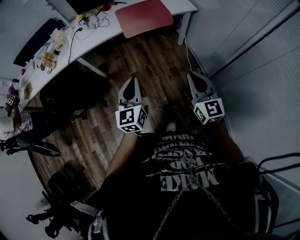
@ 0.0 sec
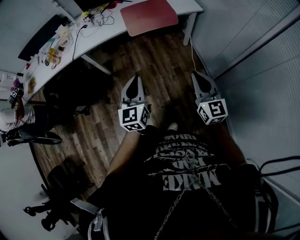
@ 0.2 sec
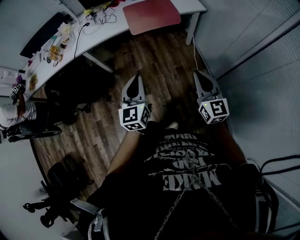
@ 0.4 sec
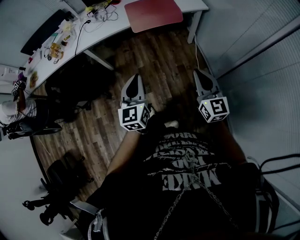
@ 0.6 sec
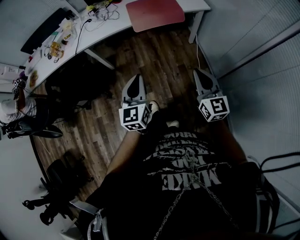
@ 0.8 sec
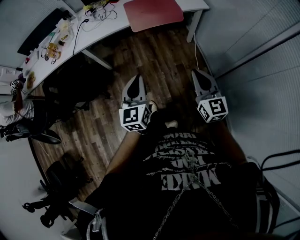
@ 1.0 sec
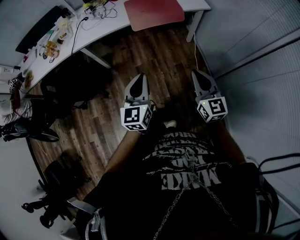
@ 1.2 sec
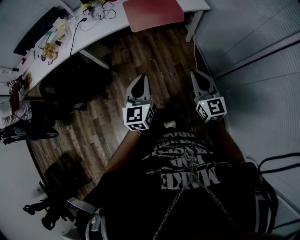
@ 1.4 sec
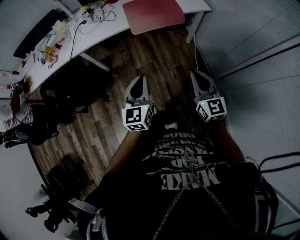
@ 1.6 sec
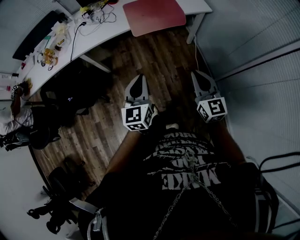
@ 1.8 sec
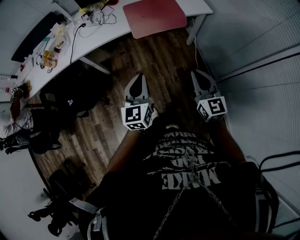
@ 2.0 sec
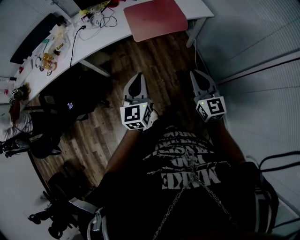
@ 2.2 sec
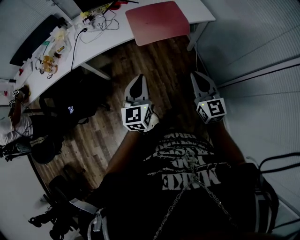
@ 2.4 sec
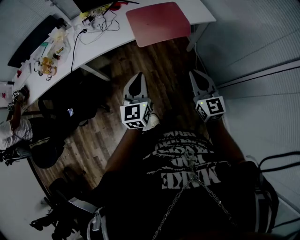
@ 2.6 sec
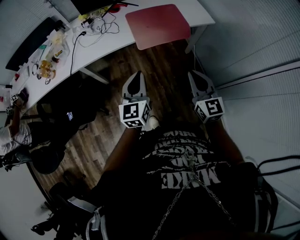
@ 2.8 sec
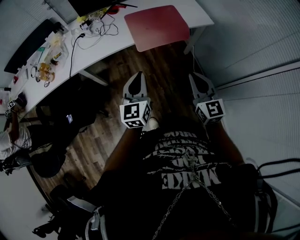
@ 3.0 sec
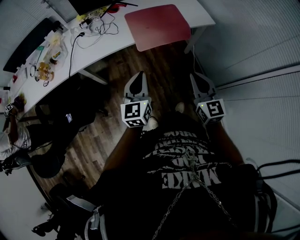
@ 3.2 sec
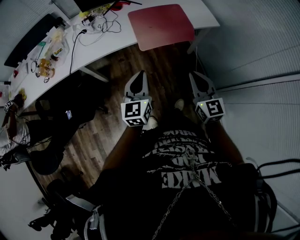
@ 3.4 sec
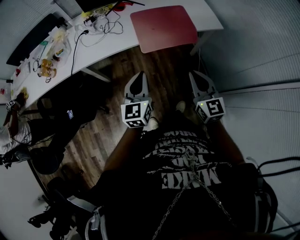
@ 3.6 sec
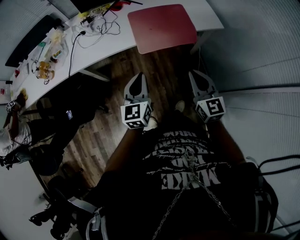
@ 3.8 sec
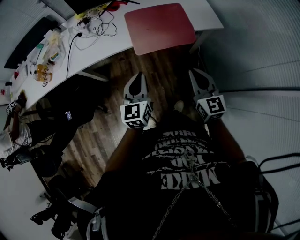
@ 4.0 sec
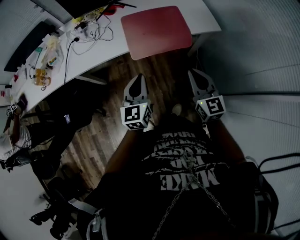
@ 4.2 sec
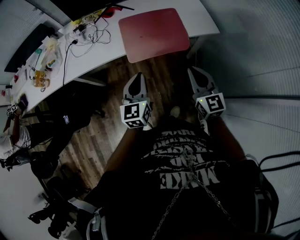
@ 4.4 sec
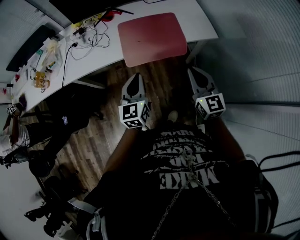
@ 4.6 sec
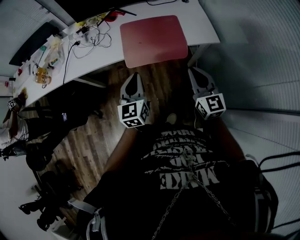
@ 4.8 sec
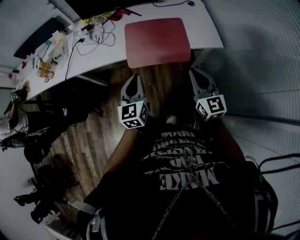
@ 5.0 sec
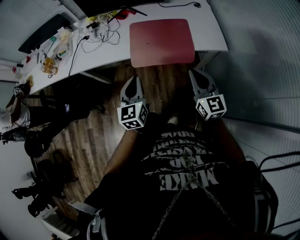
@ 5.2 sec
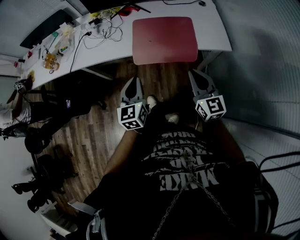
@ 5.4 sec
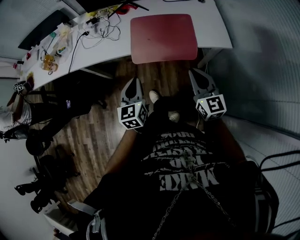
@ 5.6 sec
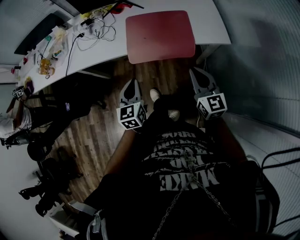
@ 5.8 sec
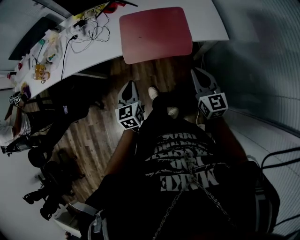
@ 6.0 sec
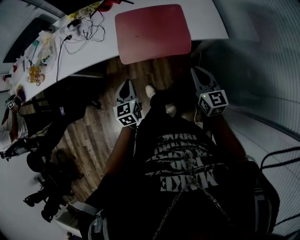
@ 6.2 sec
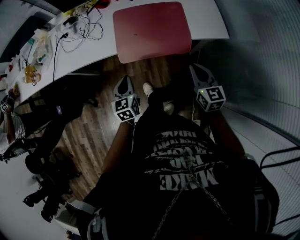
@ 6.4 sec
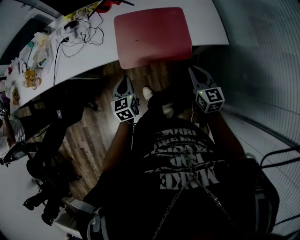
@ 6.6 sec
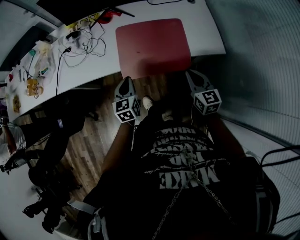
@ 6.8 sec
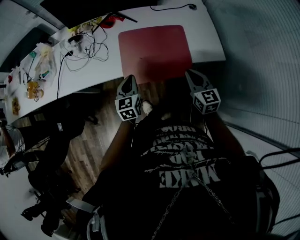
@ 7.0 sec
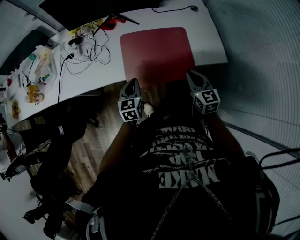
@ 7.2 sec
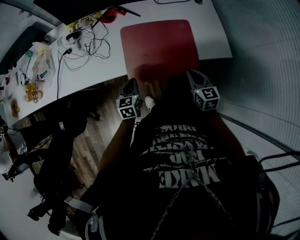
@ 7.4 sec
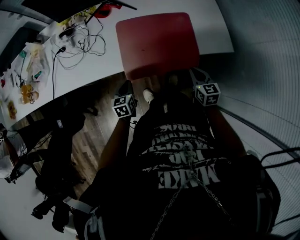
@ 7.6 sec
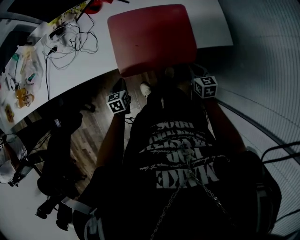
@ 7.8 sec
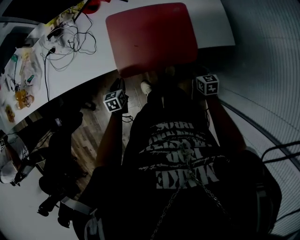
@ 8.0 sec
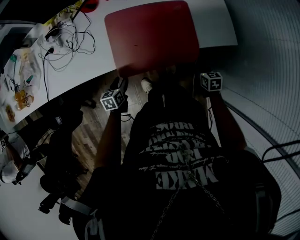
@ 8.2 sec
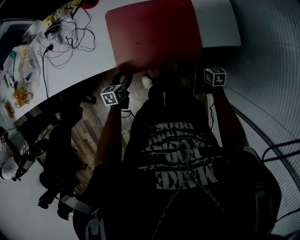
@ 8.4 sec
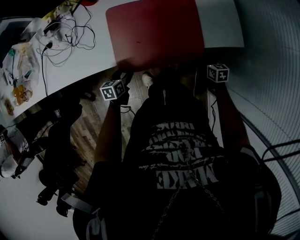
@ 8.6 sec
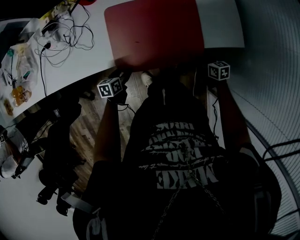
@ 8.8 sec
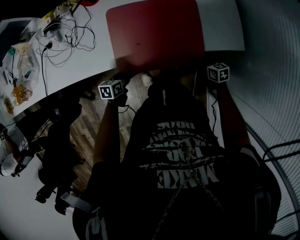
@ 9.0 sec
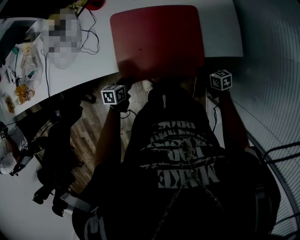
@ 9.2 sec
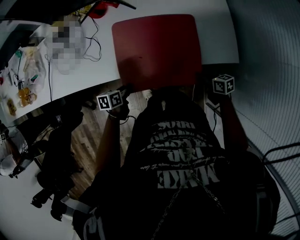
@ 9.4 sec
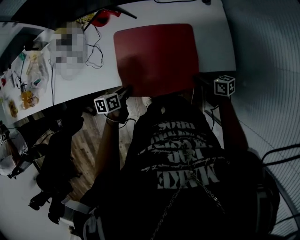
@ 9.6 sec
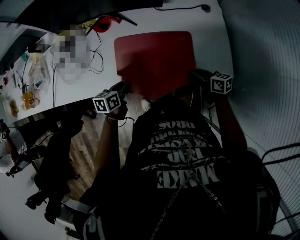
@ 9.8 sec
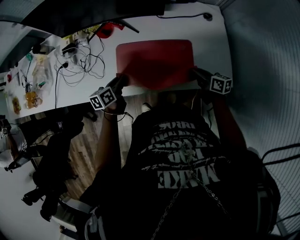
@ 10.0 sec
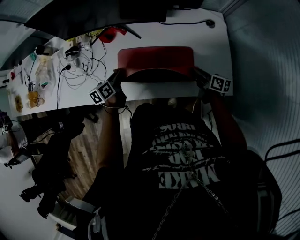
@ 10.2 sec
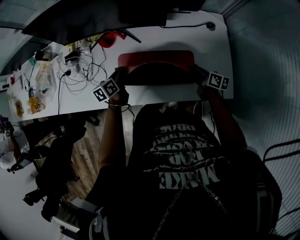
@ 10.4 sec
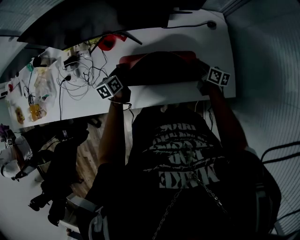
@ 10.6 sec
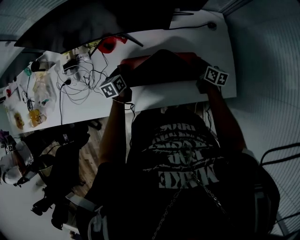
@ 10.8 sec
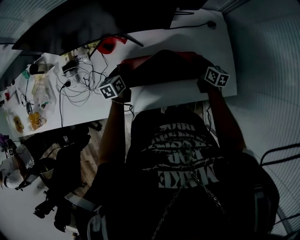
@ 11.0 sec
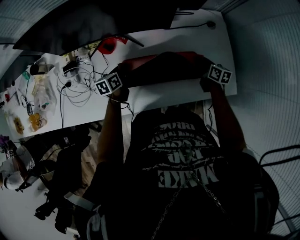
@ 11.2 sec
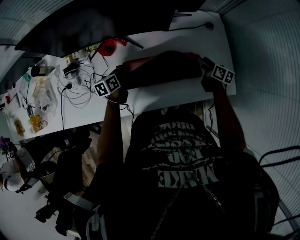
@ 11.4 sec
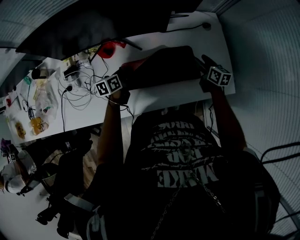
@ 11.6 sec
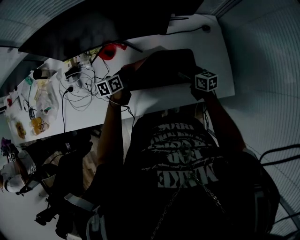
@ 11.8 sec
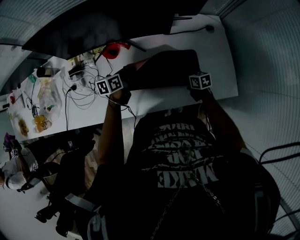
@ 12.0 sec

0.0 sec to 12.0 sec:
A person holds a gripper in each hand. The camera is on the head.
0.0 sec to 1.6 sec: Both grippers move forward, approximately 5 cm.
1.6 sec to 3.0 sec: Both grippers travel together forward and to the left, roughly 20 cm.
3.0 sec to 4.4 sec: Both grippers travel together forward and to the right, some 20 cm.
4.4 sec to 6.0 sec: The left gripper heads downward, covering about 10 cm; the right gripper moves to the right, forward and downward, roughly 15 cm.
6.0 sec to 7.6 sec: The two grippers go roughly 20 cm forward and downward. The left gripper swivels approximately 20 degrees. The right gripper turns by roughly 20 degrees.
7.6 sec to 9.0 sec: The left gripper travels downward by roughly 10 cm, changes its angle by about 30 degrees, and opens its fingers. Meanwhile the right gripper is displaced downward and to the right by approximately 20 cm, swivels roughly 30 degrees, and opens up.
9.0 sec to 10.4 sec: The two grippers go some 30 cm forward and upward. The right gripper swivels about 30 degrees, and closes its fingers; the left gripper changes its angle by approximately 30 degrees.
10.4 sec to 12.0 sec: The left gripper moves forward, approximately 5 cm, and rotates some 20 degrees. The right gripper shifts approximately 10 cm to the left and downward, rotates approximately 30 degrees, and opens its fingers.

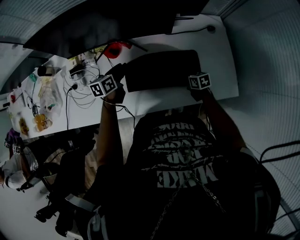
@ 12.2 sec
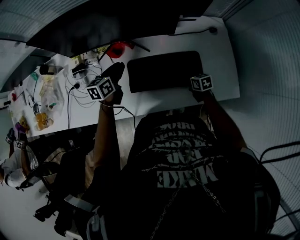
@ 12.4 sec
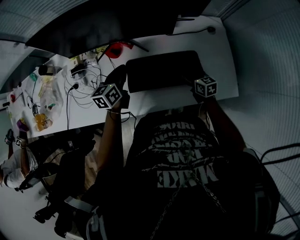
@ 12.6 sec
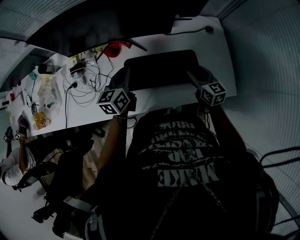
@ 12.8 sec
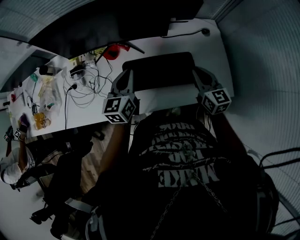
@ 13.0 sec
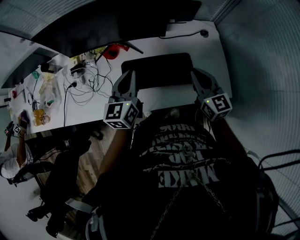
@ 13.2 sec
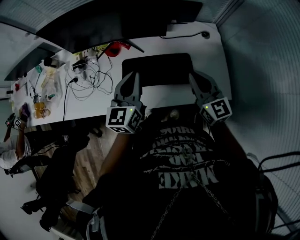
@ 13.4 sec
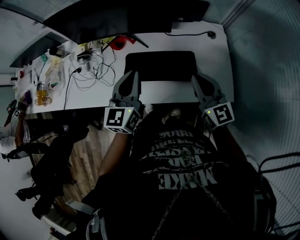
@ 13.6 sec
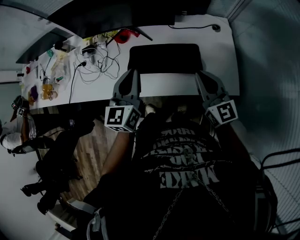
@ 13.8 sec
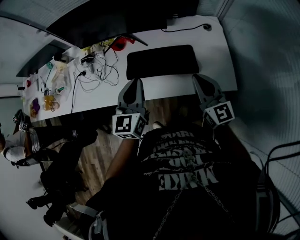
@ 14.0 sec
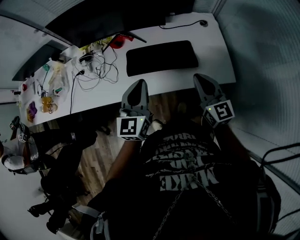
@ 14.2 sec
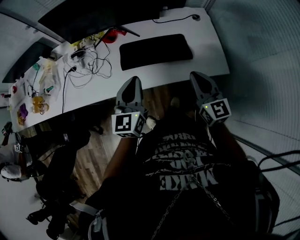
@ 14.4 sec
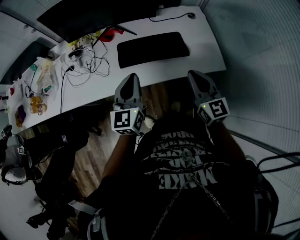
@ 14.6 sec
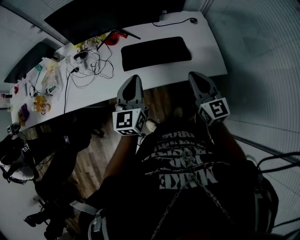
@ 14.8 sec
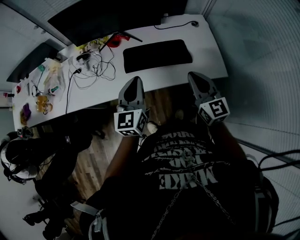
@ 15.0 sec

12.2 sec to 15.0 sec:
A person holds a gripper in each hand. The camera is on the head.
12.2 sec to 13.6 sec: The right gripper shifts about 35 cm upward, angles its fingers upward, by roughly 40 degrees, and closes its fingers. Meanwhile the left gripper goes approximately 30 cm upward, backward and to the right, changes its angle by about 40 degrees, and closes up.
13.6 sec to 15.0 sec: Both grippers move backward, roughly 15 cm.

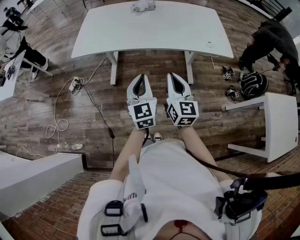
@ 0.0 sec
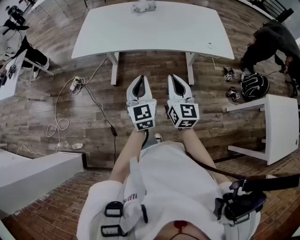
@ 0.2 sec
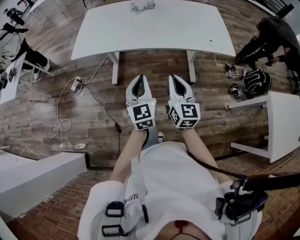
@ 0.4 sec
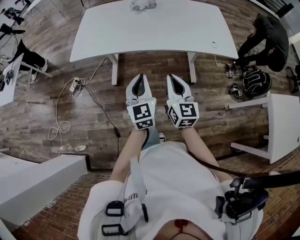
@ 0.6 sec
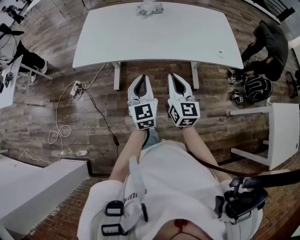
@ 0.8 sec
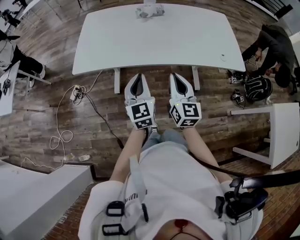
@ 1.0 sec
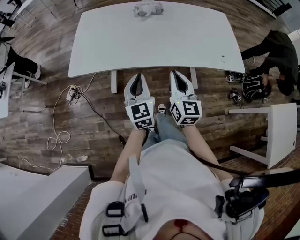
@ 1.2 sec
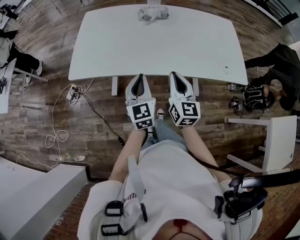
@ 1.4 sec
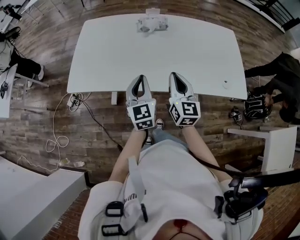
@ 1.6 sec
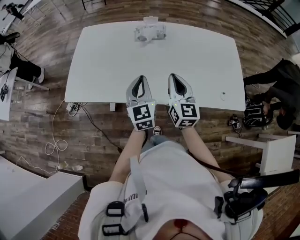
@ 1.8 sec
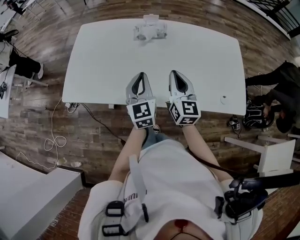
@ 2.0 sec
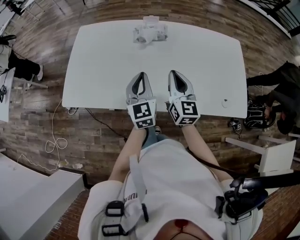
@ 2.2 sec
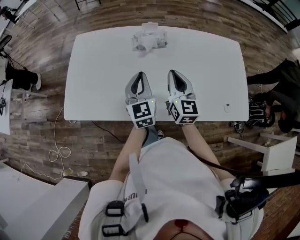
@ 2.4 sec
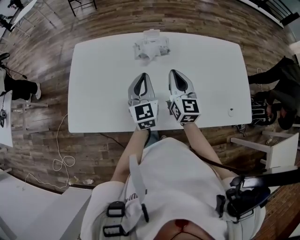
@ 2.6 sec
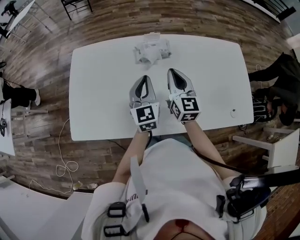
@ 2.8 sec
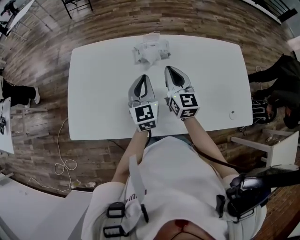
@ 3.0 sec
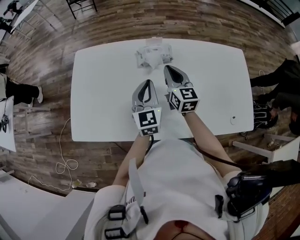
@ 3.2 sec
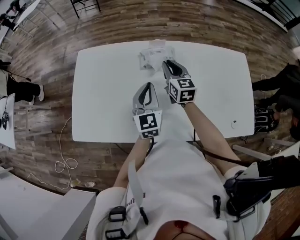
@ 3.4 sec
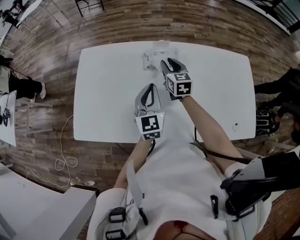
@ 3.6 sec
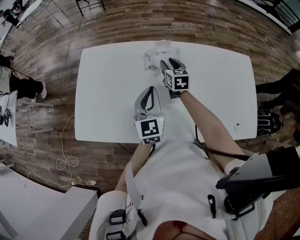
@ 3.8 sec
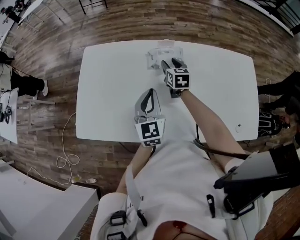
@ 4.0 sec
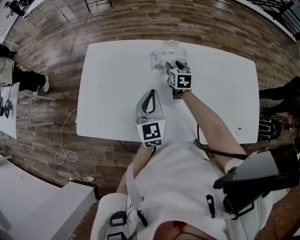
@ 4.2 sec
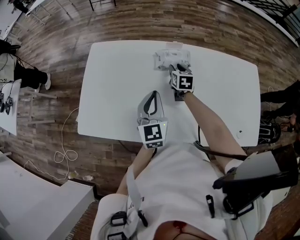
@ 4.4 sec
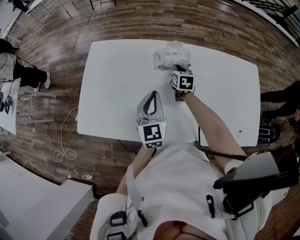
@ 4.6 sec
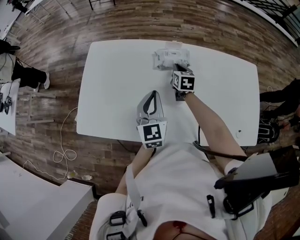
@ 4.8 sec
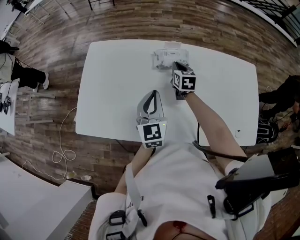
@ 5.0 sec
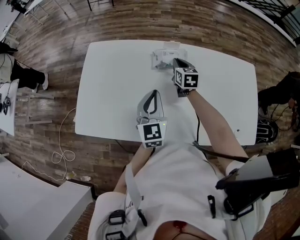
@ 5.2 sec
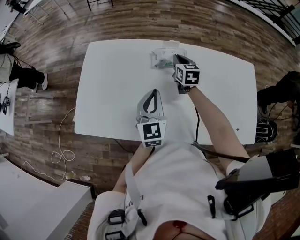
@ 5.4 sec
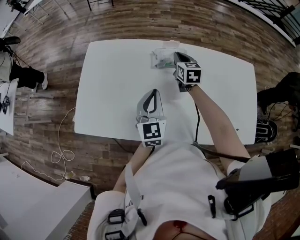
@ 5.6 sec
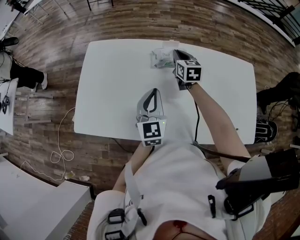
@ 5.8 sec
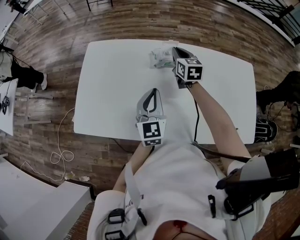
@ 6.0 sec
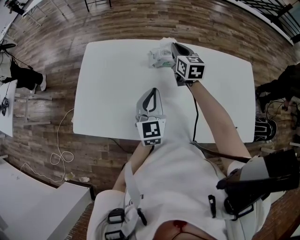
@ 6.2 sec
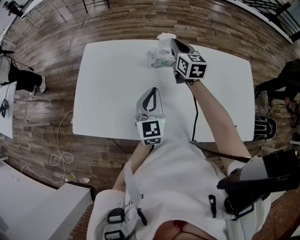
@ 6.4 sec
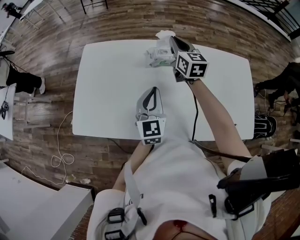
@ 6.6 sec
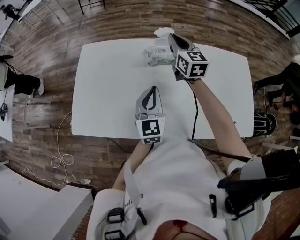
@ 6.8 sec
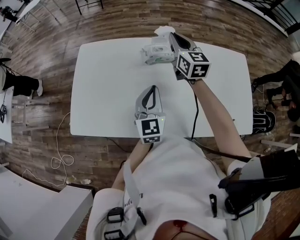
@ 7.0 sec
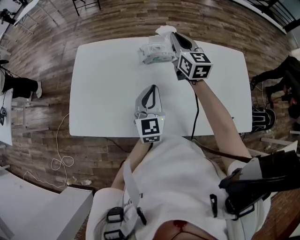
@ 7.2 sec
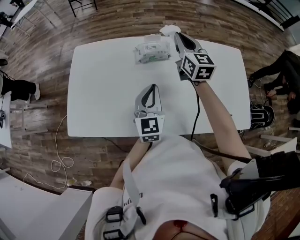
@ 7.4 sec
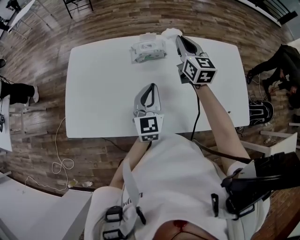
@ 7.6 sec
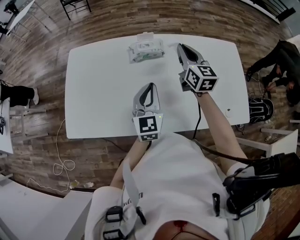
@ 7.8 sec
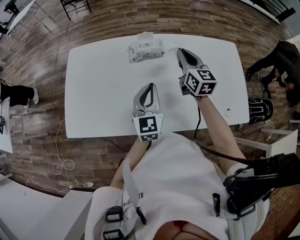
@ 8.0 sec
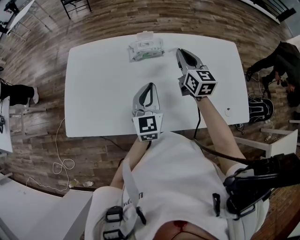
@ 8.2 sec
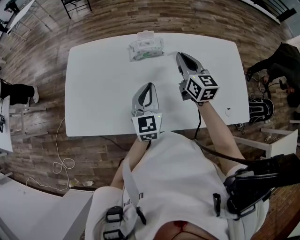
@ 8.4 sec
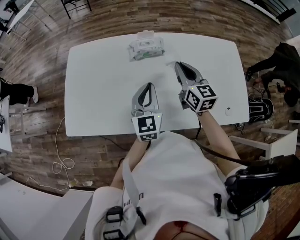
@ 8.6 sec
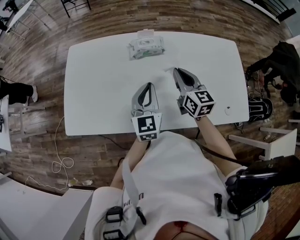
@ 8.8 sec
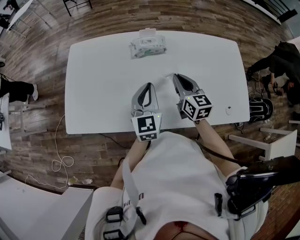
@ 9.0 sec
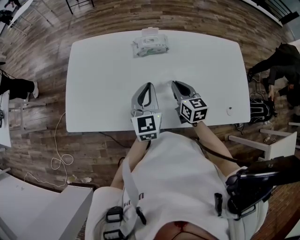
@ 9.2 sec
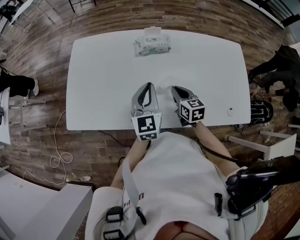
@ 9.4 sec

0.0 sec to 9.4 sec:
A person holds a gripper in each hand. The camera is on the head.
0.0 sec to 1.6 sec: The grippers both shift forward by about 30 cm.
1.6 sec to 3.2 sec: The two grippers go roughly 25 cm forward.
3.2 sec to 4.8 sec: The left gripper shifts by approximately 5 cm; the right gripper travels downward and forward by approximately 15 cm, swivels about 20 degrees, and opens, then closes again.
4.8 sec to 6.2 sec: The right gripper moves upward, about 15 cm.
6.2 sec to 7.8 sec: The left gripper heads to the right, covering about 5 cm; the right gripper travels to the right, backward and upward by roughly 15 cm.
7.8 sec to 9.4 sec: The right gripper moves downward and backward, approximately 20 cm, and rotates approximately 30 degrees.
